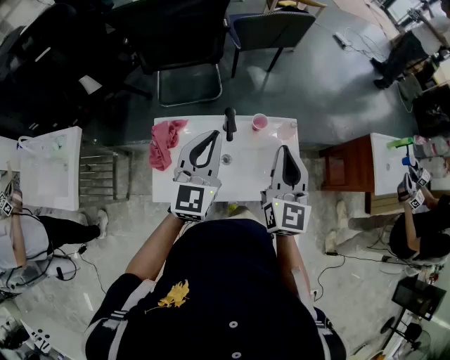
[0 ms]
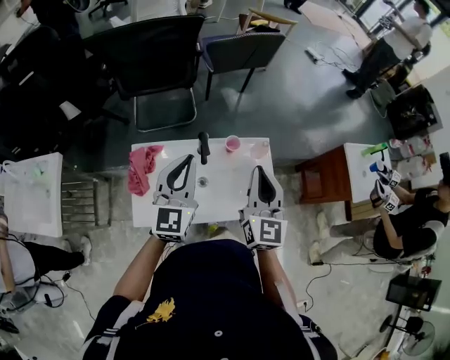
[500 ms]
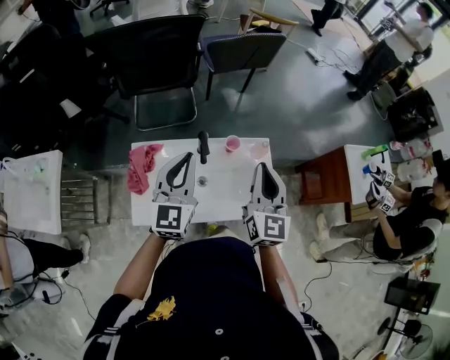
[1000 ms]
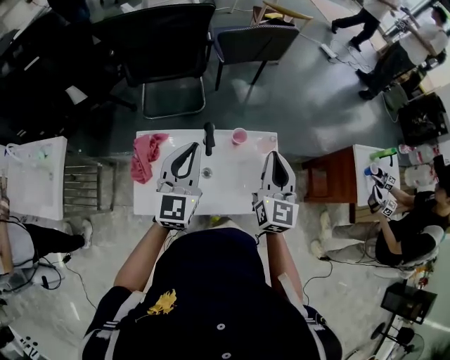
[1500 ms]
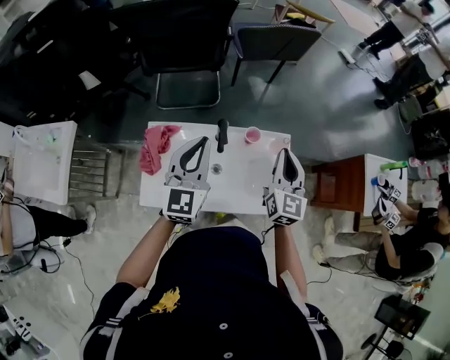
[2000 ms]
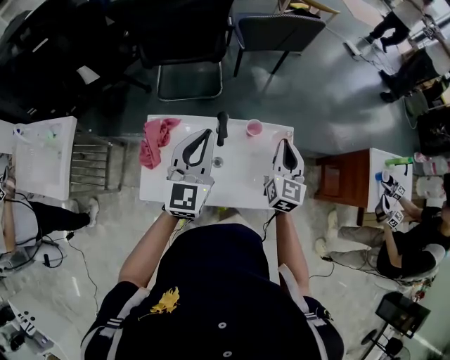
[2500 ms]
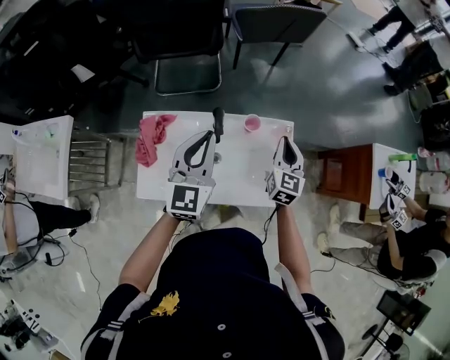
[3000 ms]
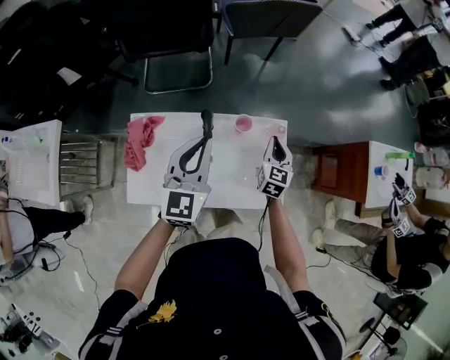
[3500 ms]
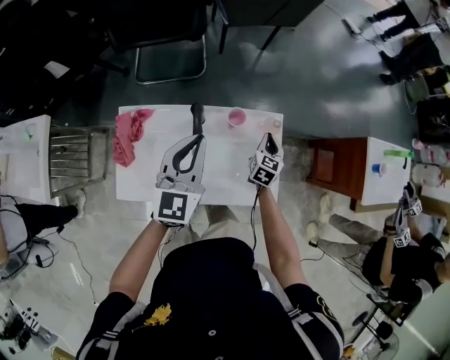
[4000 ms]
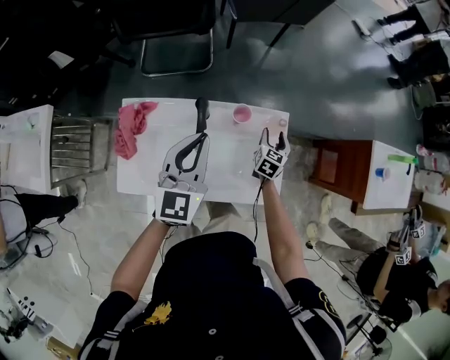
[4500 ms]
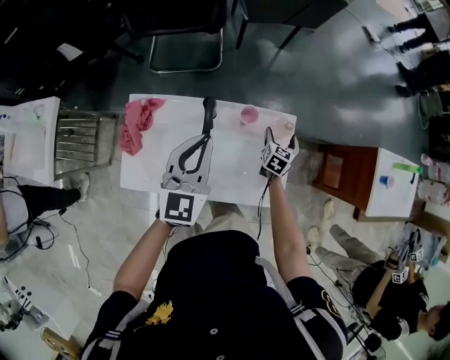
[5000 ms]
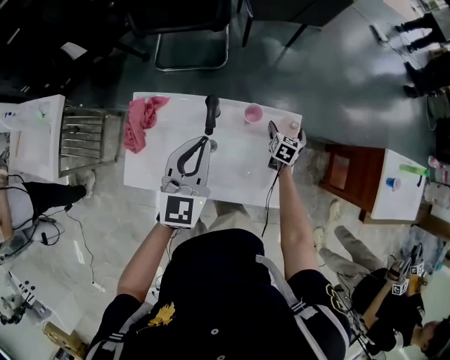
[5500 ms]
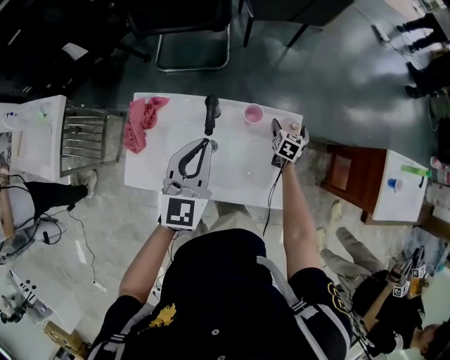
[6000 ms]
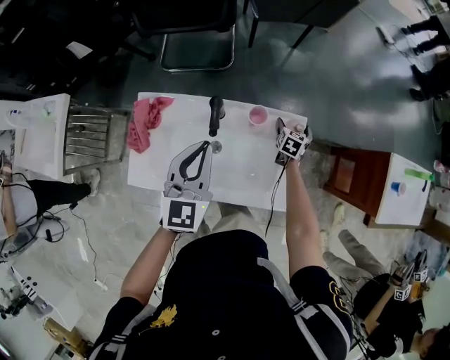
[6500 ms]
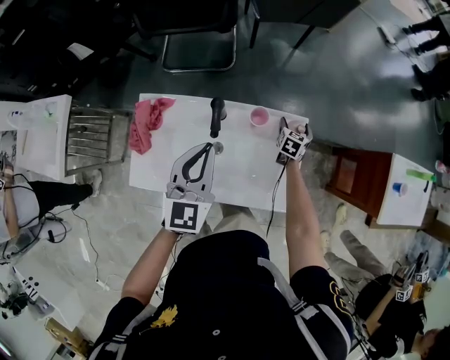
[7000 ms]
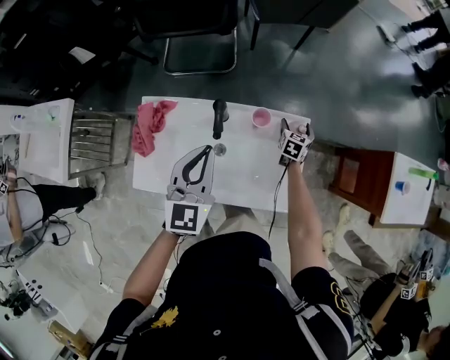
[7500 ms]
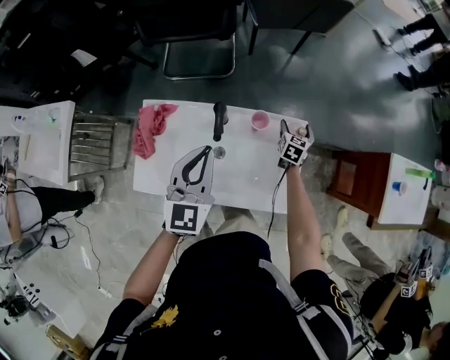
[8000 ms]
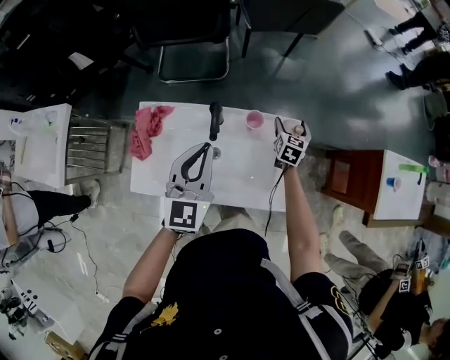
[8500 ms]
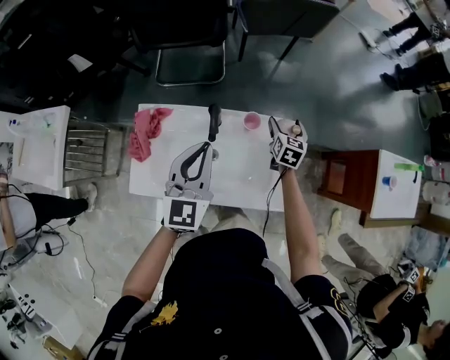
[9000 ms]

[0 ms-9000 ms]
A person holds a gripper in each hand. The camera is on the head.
0 ms to 2000 ms: The right gripper goes about 10 cm forward, downward and to the right.
2000 ms to 4500 ms: The right gripper moves downward, some 30 cm, tips its fingers downward by some 30 degrees, and opens its fingers. The left gripper goes roughly 10 cm to the right, downward and forward.
4500 ms to 7000 ms: The right gripper is displaced forward and downward by approximately 10 cm.
7000 ms to 9000 ms: The right gripper moves upward, some 15 cm.

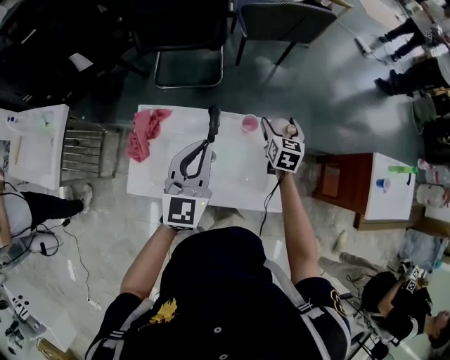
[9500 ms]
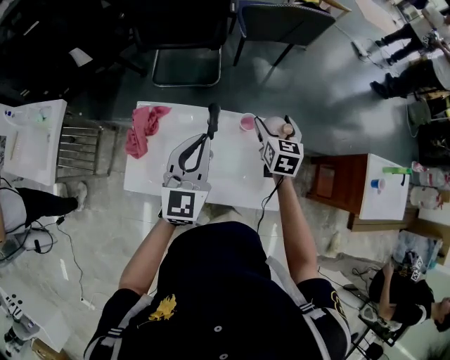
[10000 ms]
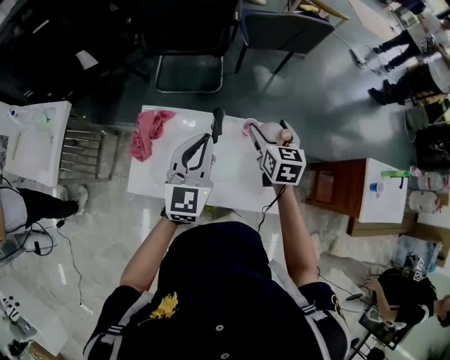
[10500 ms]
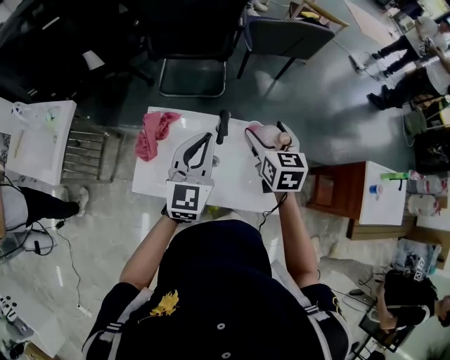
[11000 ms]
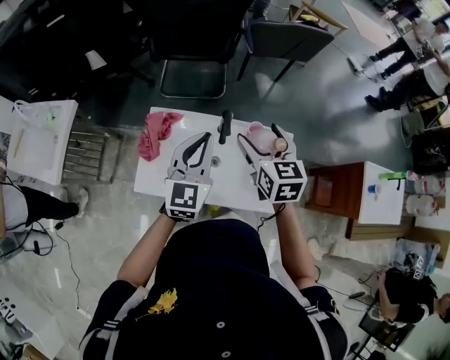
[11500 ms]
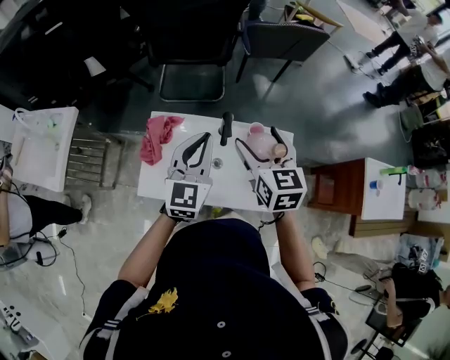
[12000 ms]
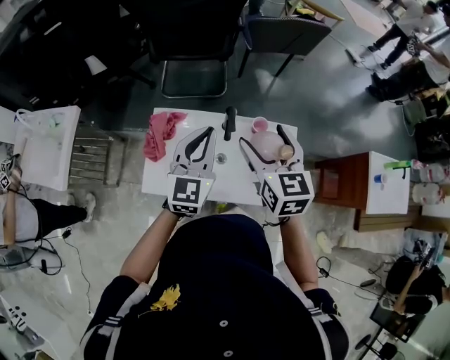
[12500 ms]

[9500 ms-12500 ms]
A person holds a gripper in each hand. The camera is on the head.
9500 ms to 11000 ms: The right gripper heads upward, to the left and backward, covering approximately 20 cm.
11000 ms to 12500 ms: The right gripper heads upward, backward and to the left, covering about 10 cm.

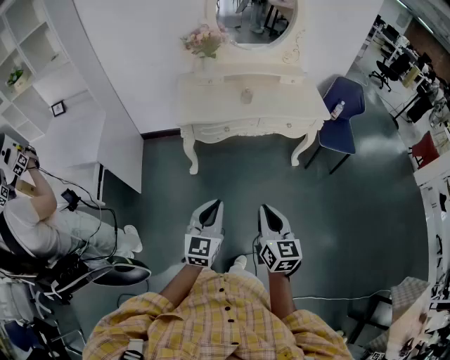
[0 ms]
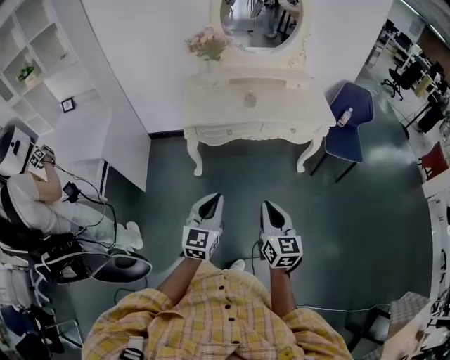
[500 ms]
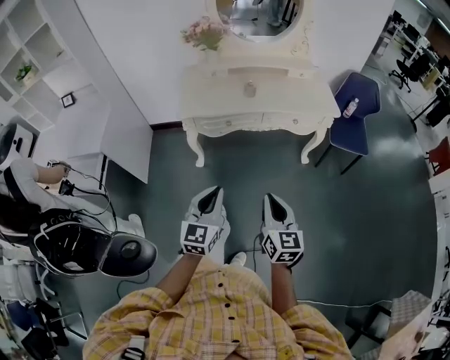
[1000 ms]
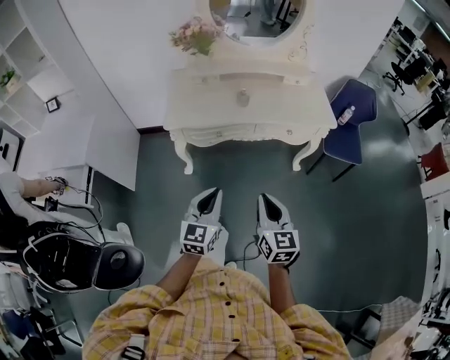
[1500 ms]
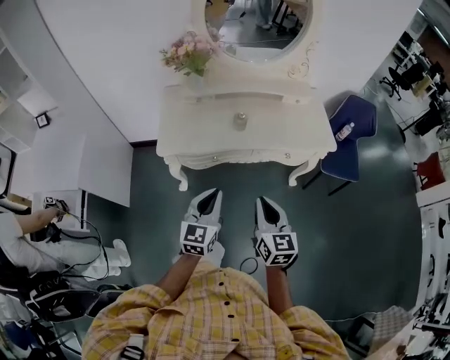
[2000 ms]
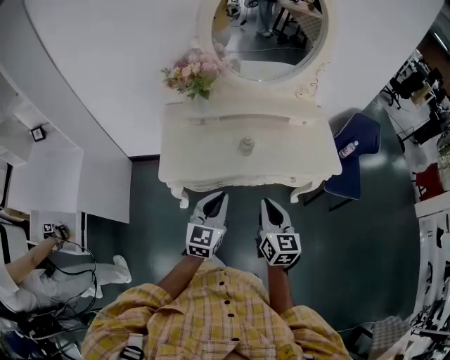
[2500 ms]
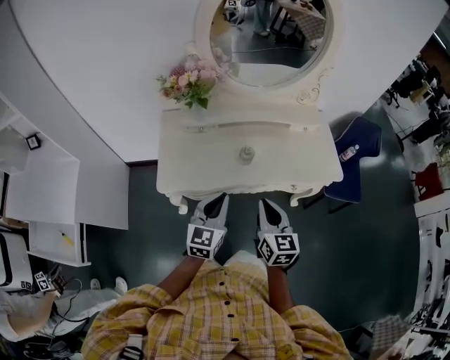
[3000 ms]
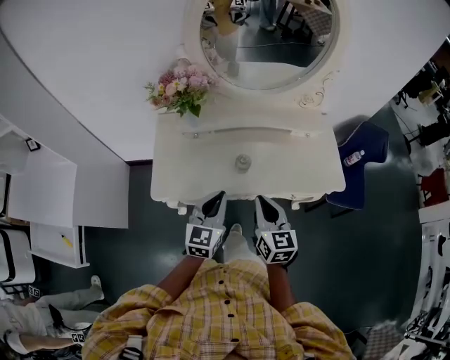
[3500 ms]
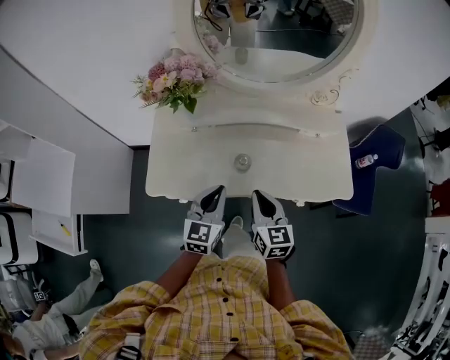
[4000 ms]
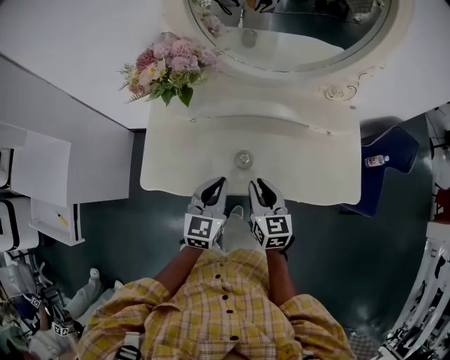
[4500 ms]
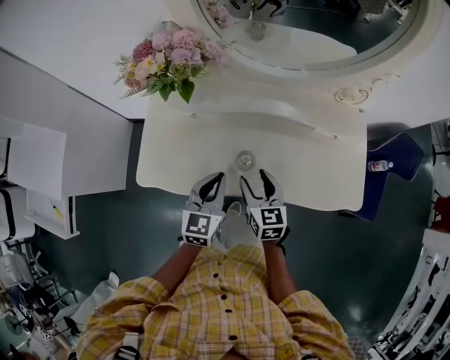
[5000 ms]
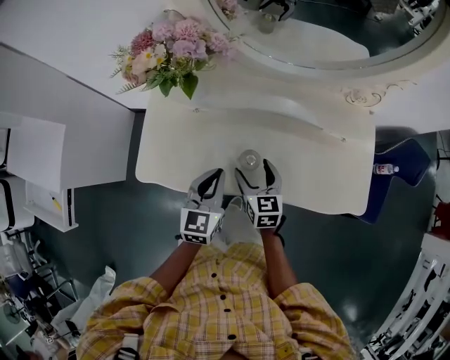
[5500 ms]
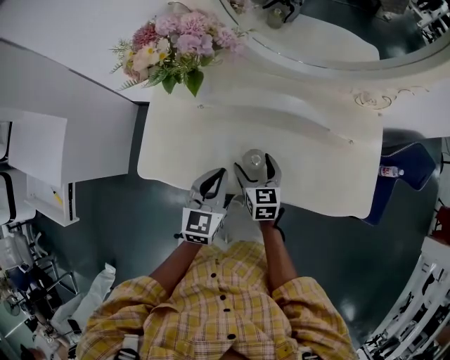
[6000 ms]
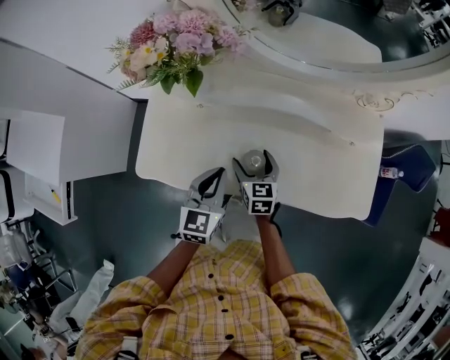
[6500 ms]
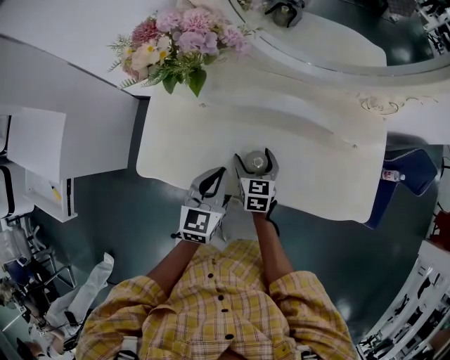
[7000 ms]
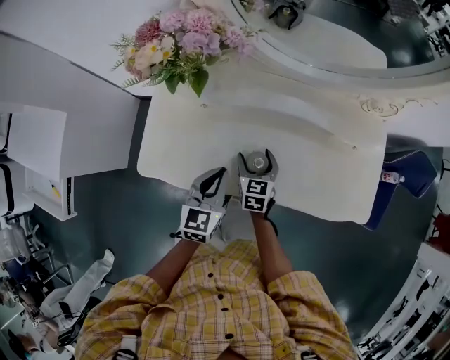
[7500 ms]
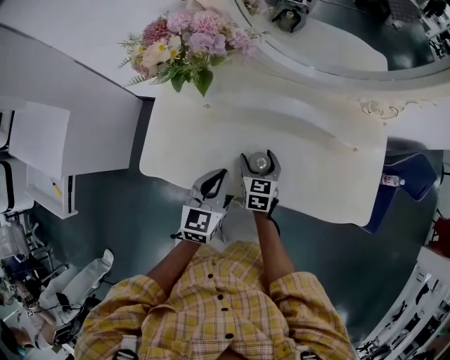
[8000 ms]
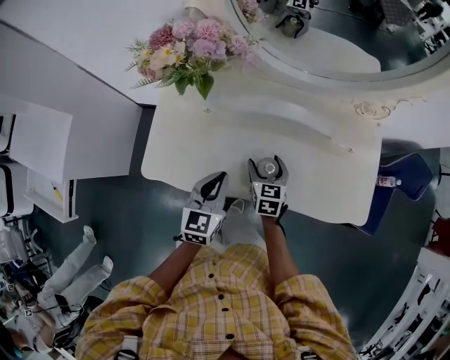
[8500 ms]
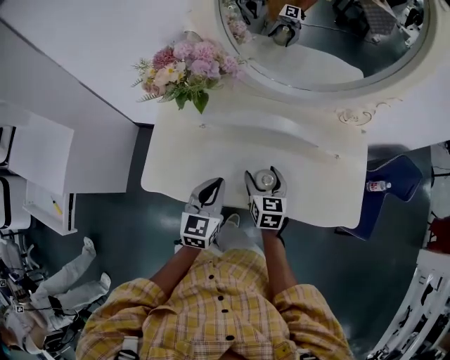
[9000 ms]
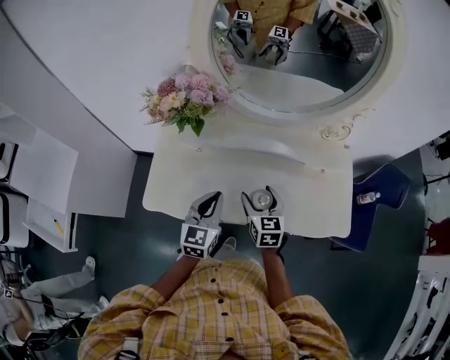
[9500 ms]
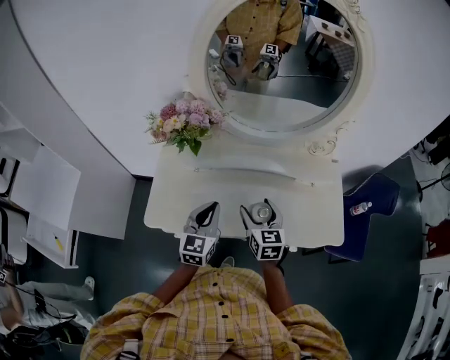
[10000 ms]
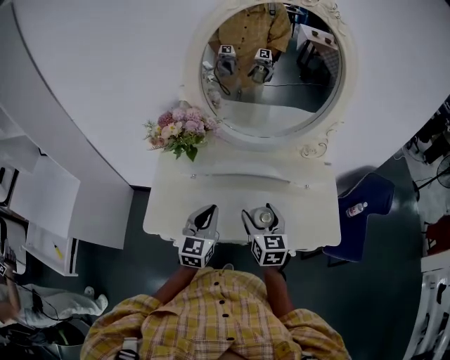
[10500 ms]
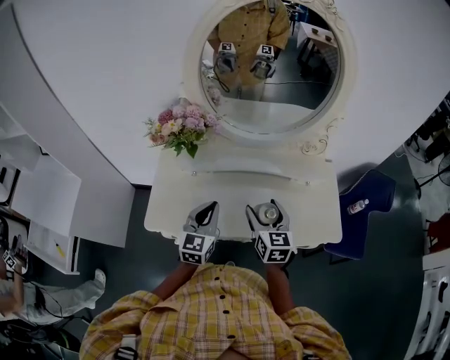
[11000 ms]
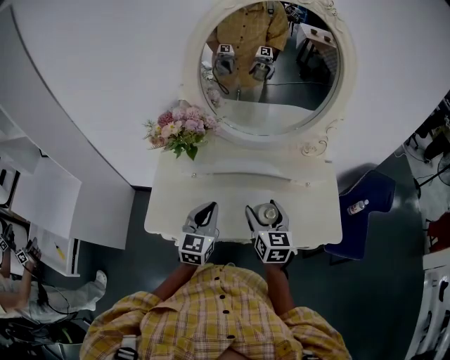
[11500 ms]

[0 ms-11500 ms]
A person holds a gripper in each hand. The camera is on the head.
0 ms to 2000 ms: The grippers both shift forward by roughly 25 cm.
2000 ms to 4000 ms: The grippers both shift forward by approximately 30 cm.
4000 ms to 6000 ms: The left gripper moves downward and forward, some 10 cm. Meanwhile the right gripper is displaced downward and forward by roughly 20 cm, and opens its fingers.
6000 ms to 7500 ms: There are only small adjustments of the grippers.
7500 ms to 9500 ms: The right gripper shifts about 15 cm upward. Meanwhile the left gripper travels upward by roughly 10 cm.
9500 ms to 11500 ms: The left gripper moves upward, roughly 5 cm. The right gripper travels upward by approximately 10 cm.

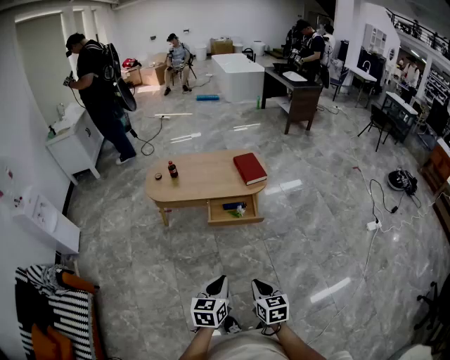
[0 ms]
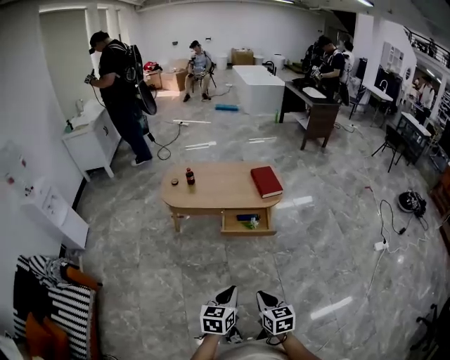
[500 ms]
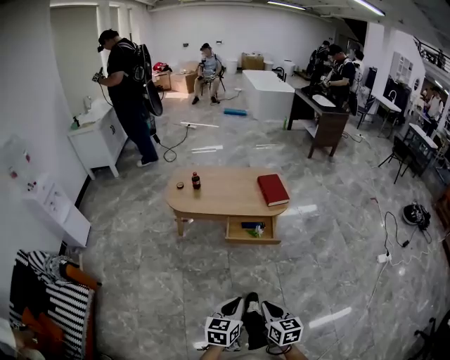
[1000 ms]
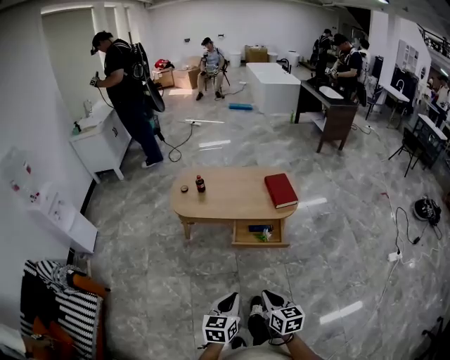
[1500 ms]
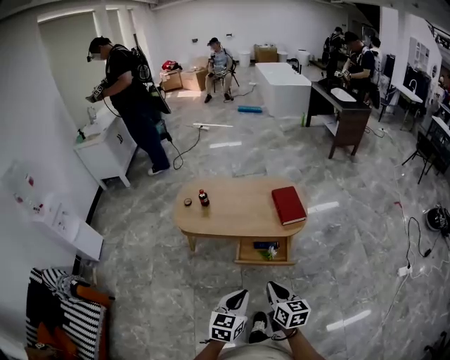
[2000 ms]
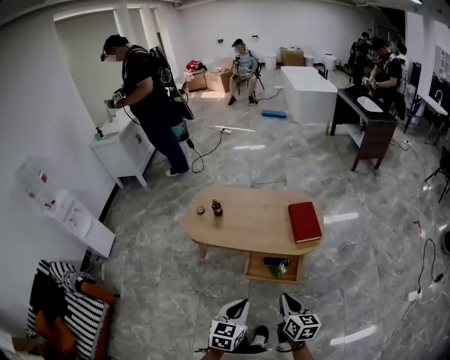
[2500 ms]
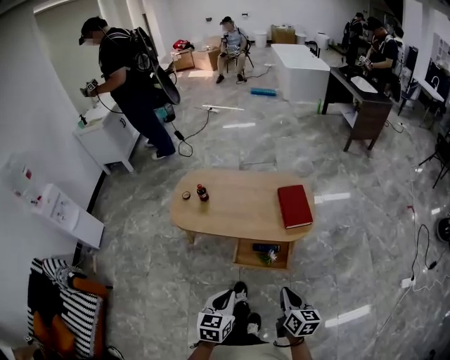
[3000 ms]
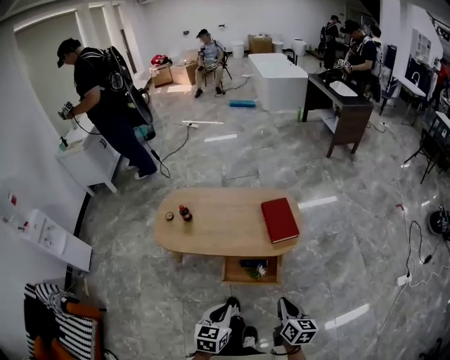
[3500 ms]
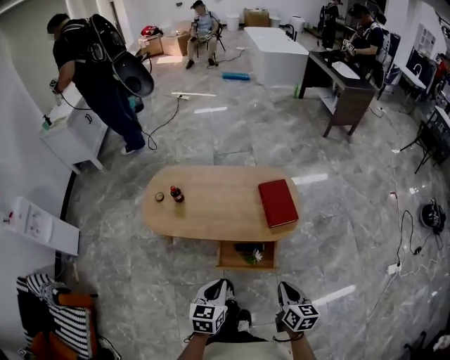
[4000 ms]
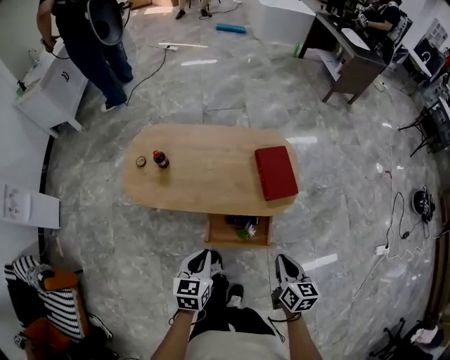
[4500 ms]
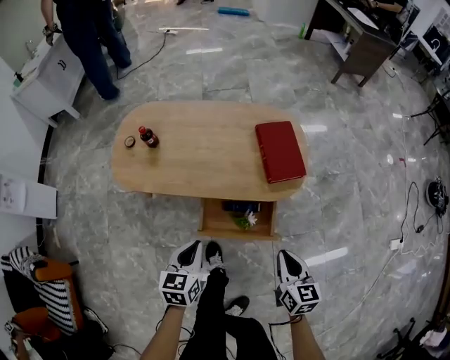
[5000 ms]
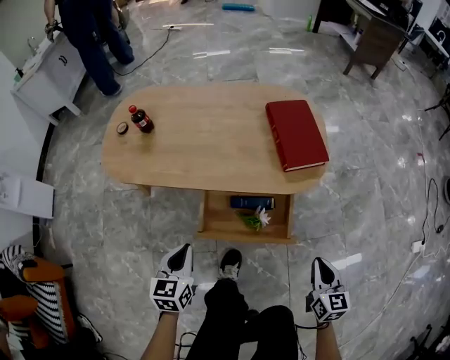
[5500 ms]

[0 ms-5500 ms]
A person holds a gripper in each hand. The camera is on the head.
0 ms to 2000 ms: Both grippers move forward, roughly 25 cm.
2000 ms to 3500 ms: The left gripper travels forward by roughly 15 cm, while the right gripper goes roughly 20 cm to the right, forward and downward.
3500 ms to 5500 ms: The two grippers go some 35 cm downward.
